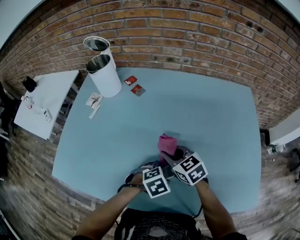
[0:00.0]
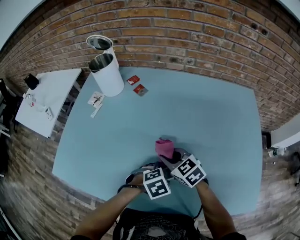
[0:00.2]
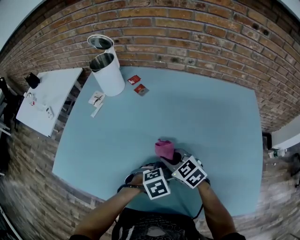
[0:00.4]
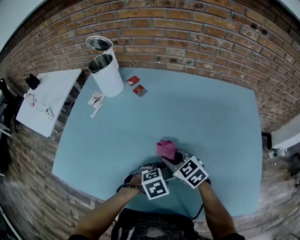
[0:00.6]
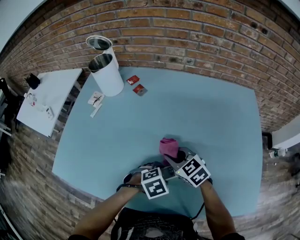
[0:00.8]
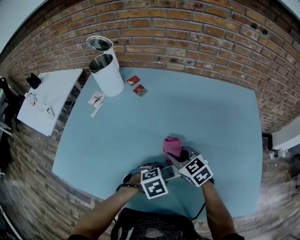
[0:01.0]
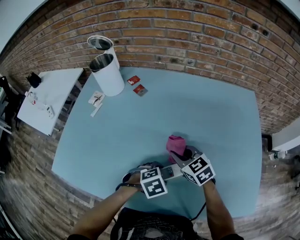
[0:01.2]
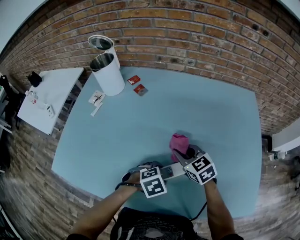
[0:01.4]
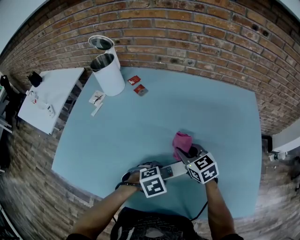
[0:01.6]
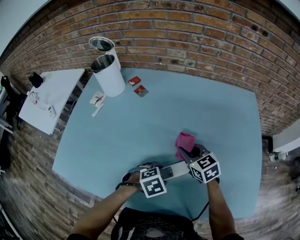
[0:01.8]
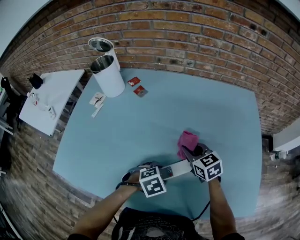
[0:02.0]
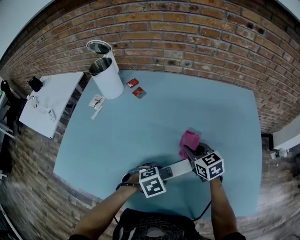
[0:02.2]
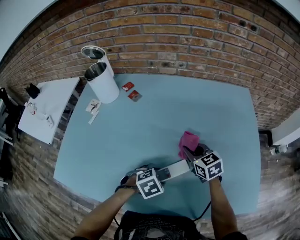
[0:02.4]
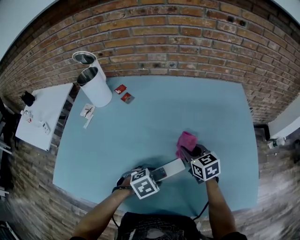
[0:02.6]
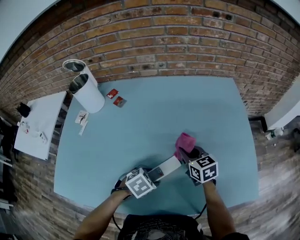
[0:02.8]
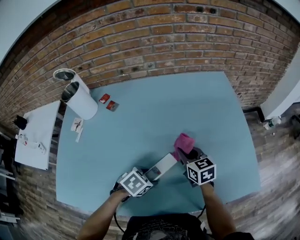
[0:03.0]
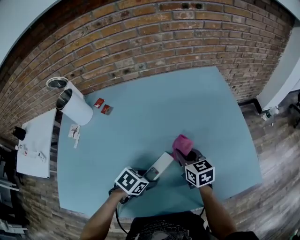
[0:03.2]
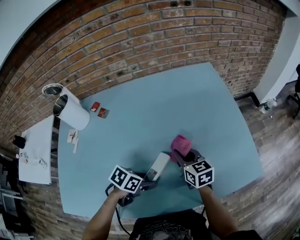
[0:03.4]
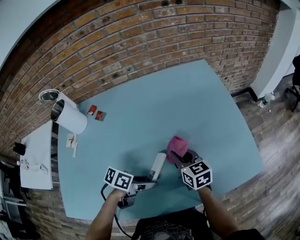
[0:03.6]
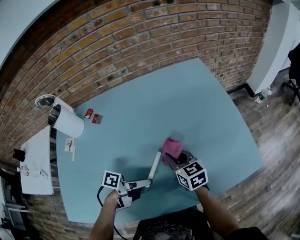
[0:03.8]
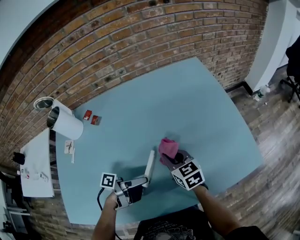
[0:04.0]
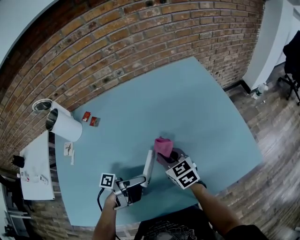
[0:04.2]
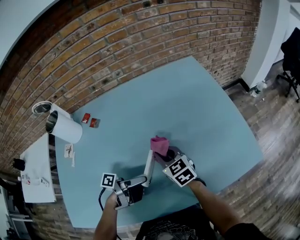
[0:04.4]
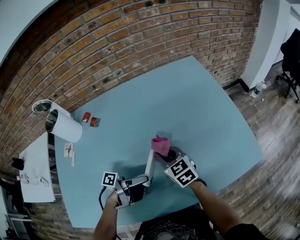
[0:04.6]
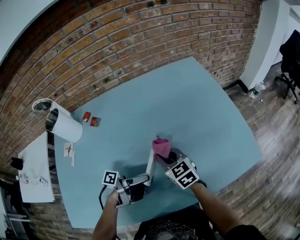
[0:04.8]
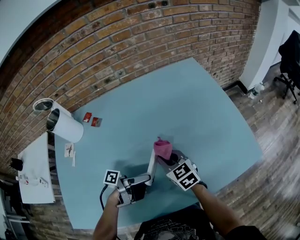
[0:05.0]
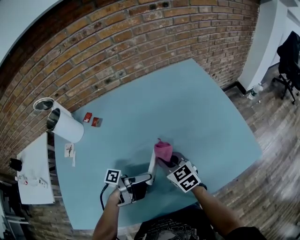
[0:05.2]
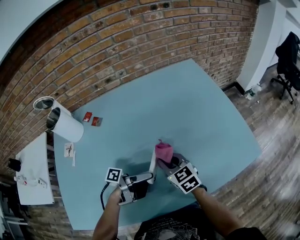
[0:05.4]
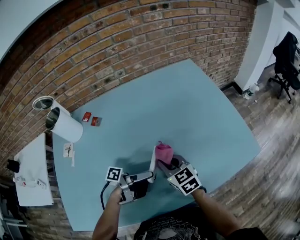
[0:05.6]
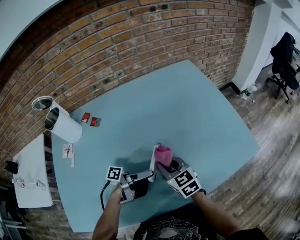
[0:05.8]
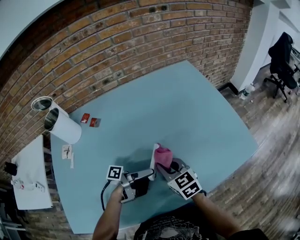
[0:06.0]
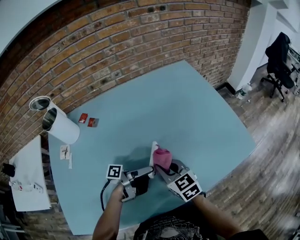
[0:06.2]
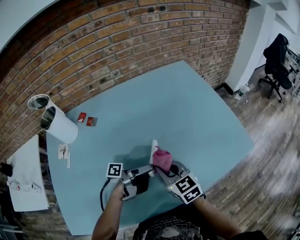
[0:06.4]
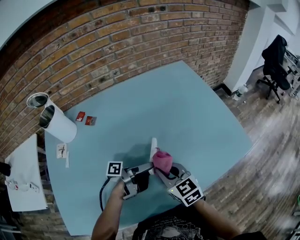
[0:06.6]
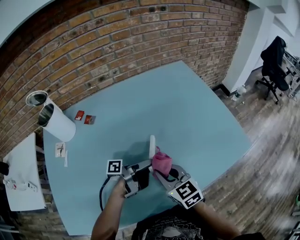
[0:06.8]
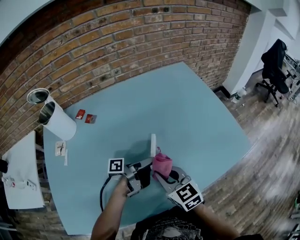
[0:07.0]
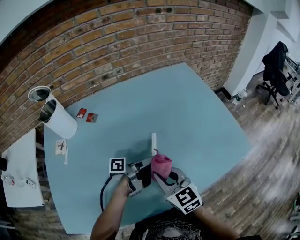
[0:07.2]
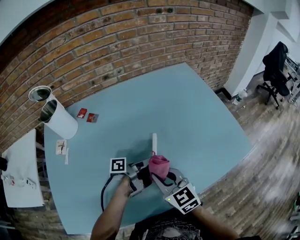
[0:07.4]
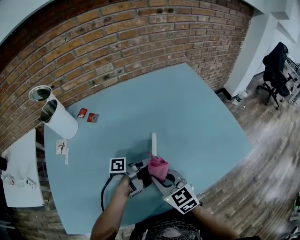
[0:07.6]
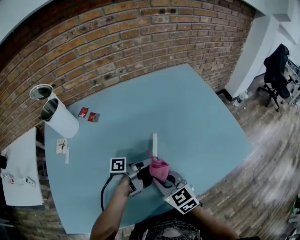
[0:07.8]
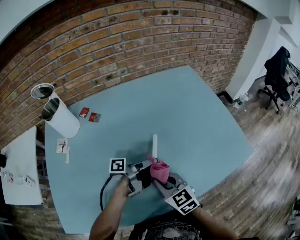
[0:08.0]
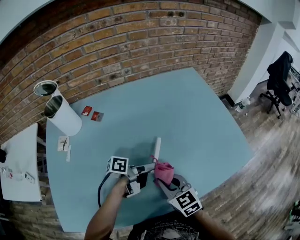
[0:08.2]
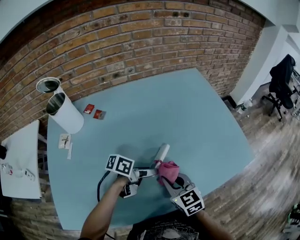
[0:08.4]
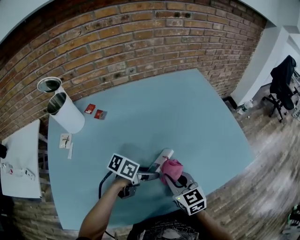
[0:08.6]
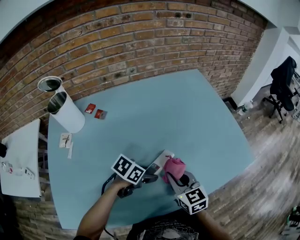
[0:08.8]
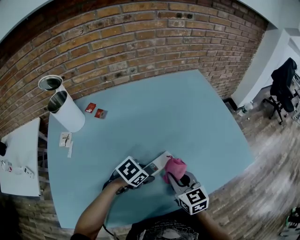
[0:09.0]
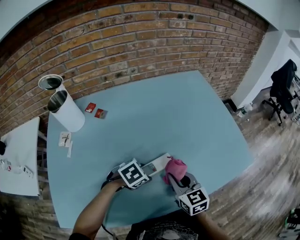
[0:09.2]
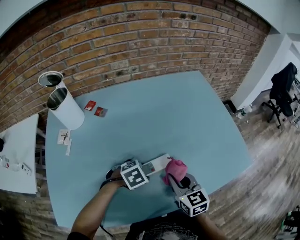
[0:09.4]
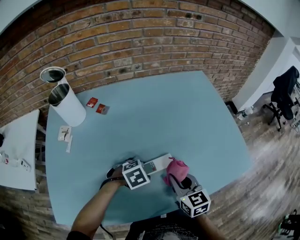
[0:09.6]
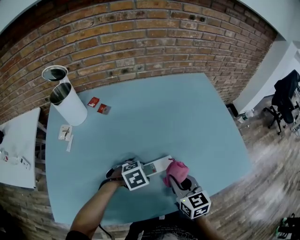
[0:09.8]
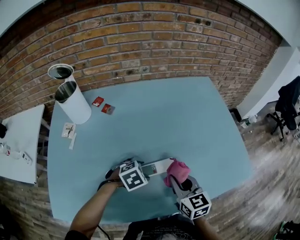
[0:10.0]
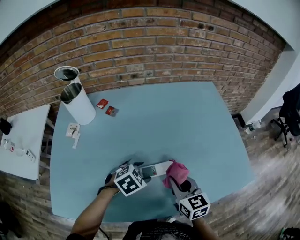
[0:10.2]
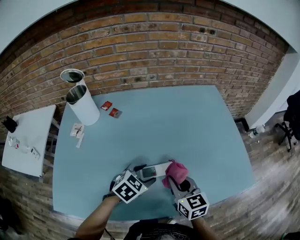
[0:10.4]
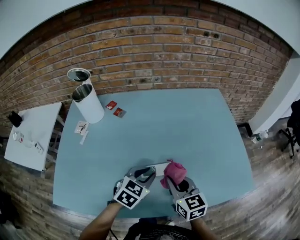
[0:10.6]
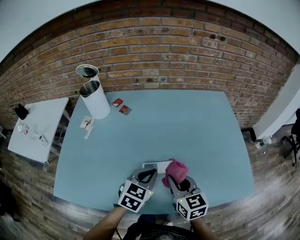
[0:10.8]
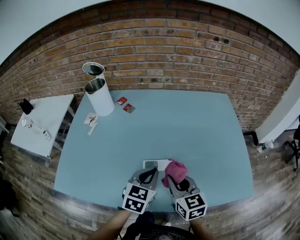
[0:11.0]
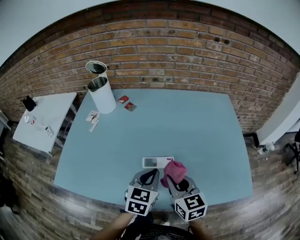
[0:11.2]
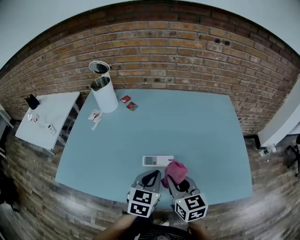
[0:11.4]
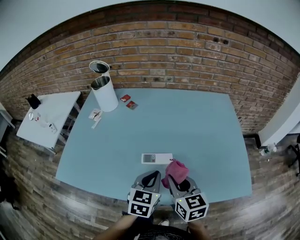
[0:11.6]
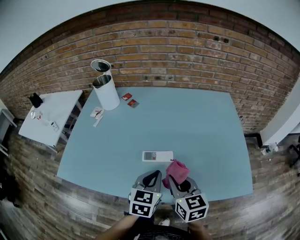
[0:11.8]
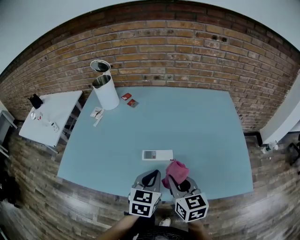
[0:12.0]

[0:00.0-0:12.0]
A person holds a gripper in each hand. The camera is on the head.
0:00.0 to 0:01.6: The right gripper ends up about 5 cm from where it was.
0:01.6 to 0:03.0: The right gripper travels to the right by approximately 10 cm, and swivels about 30 degrees.
0:03.0 to 0:04.4: The right gripper moves some 5 cm. Meanwhile the left gripper travels upward by roughly 5 cm, and tips its fingers upward by roughly 70 degrees.
0:04.4 to 0:06.0: The right gripper heads backward, covering some 10 cm.
0:06.0 to 0:07.6: The right gripper shifts some 5 cm backward.
0:07.6 to 0:09.0: The left gripper goes about 5 cm backward and downward, and angles its fingers downward, by roughly 60 degrees. The right gripper ends up approximately 5 cm from where it was.
0:09.0 to 0:10.4: The left gripper travels upward by about 5 cm, and turns by approximately 30 degrees.
0:10.4 to 0:12.0: The right gripper moves some 10 cm. Meanwhile the left gripper changes place by some 10 cm, turns by roughly 50 degrees, and closes.

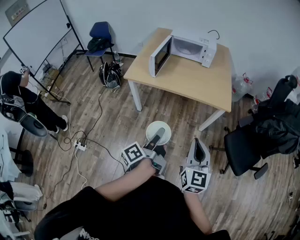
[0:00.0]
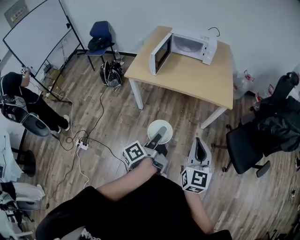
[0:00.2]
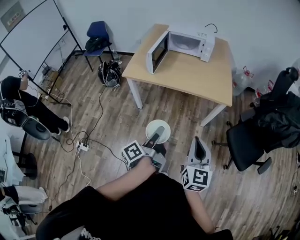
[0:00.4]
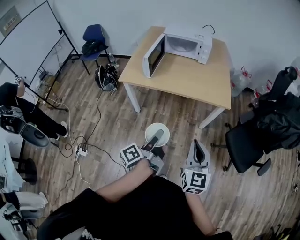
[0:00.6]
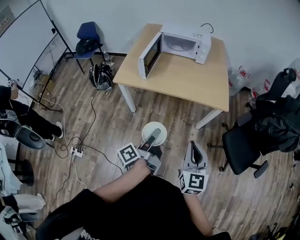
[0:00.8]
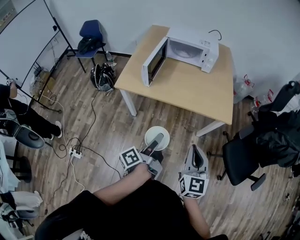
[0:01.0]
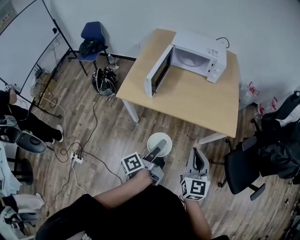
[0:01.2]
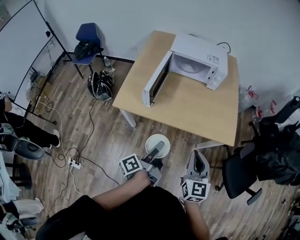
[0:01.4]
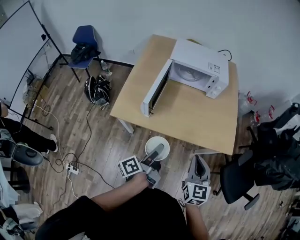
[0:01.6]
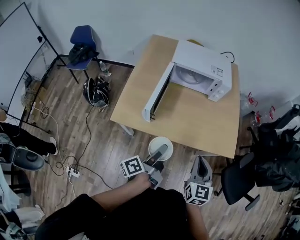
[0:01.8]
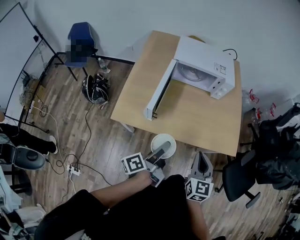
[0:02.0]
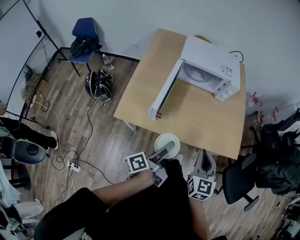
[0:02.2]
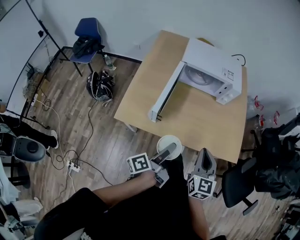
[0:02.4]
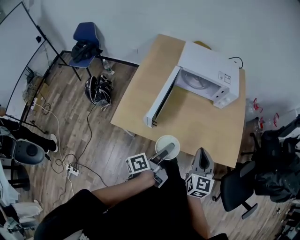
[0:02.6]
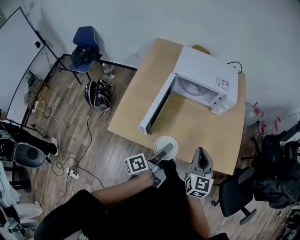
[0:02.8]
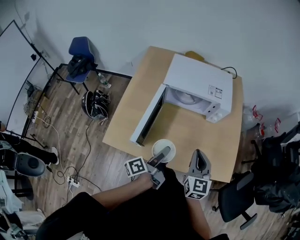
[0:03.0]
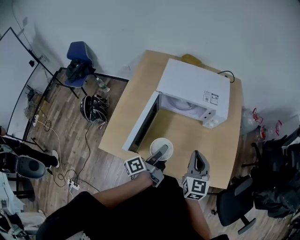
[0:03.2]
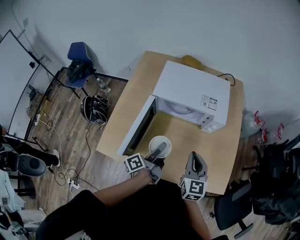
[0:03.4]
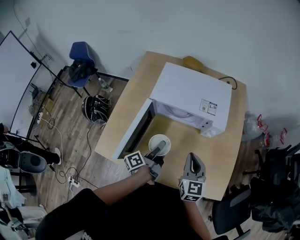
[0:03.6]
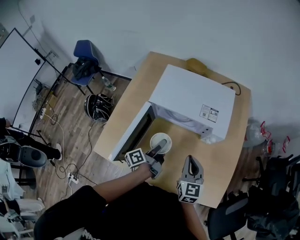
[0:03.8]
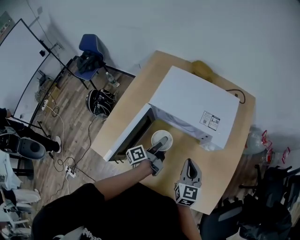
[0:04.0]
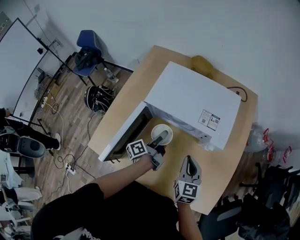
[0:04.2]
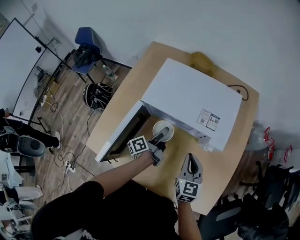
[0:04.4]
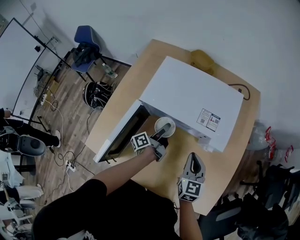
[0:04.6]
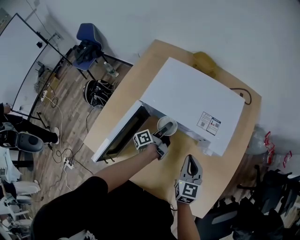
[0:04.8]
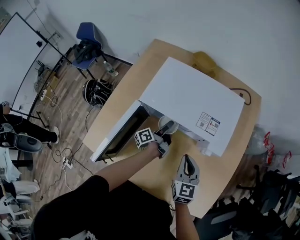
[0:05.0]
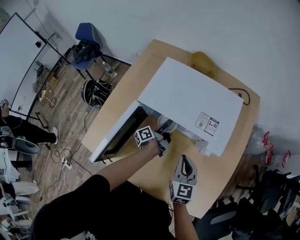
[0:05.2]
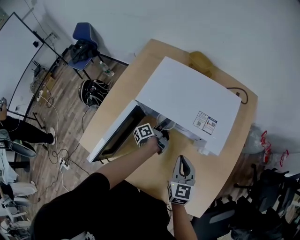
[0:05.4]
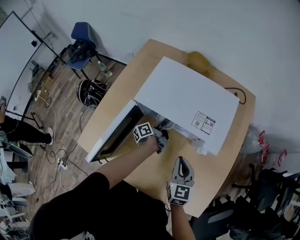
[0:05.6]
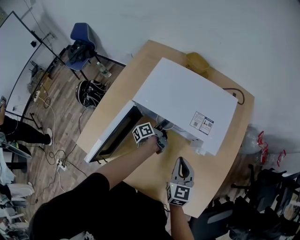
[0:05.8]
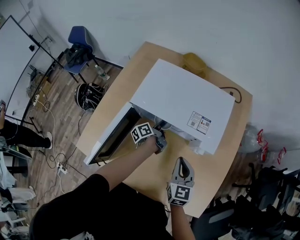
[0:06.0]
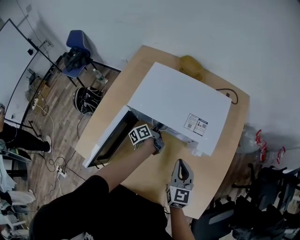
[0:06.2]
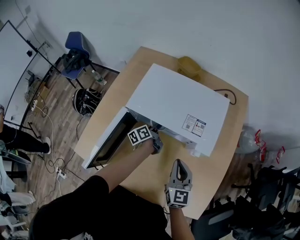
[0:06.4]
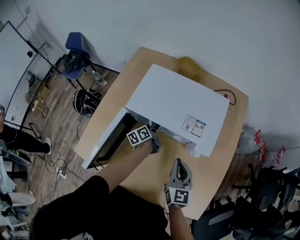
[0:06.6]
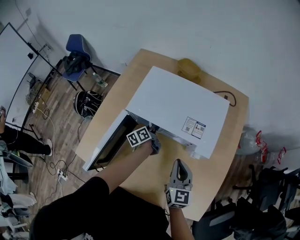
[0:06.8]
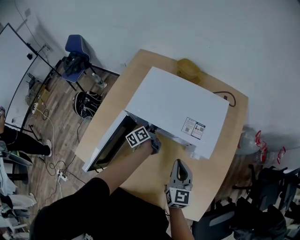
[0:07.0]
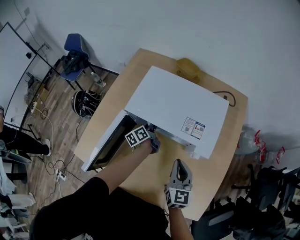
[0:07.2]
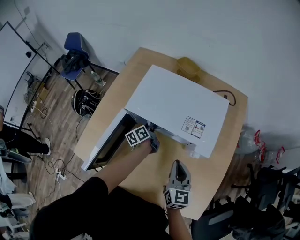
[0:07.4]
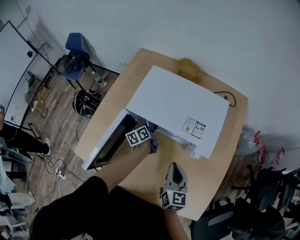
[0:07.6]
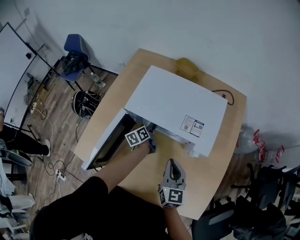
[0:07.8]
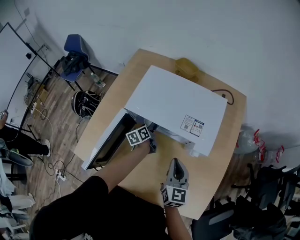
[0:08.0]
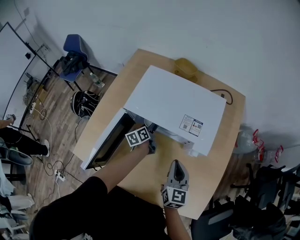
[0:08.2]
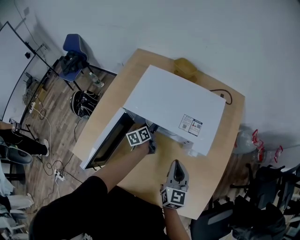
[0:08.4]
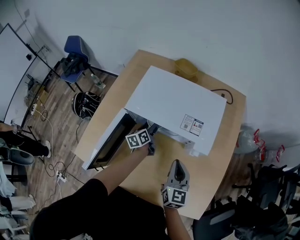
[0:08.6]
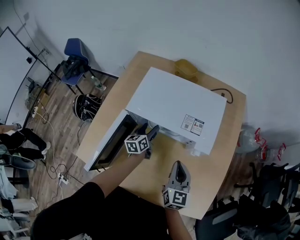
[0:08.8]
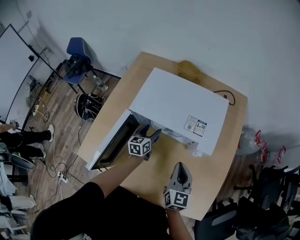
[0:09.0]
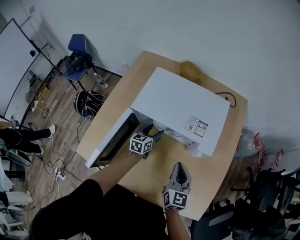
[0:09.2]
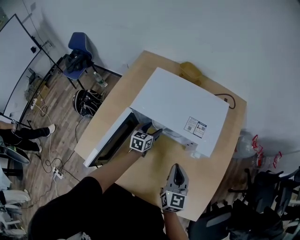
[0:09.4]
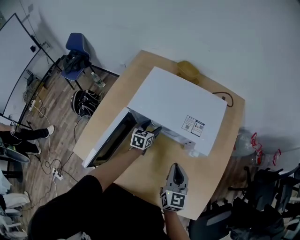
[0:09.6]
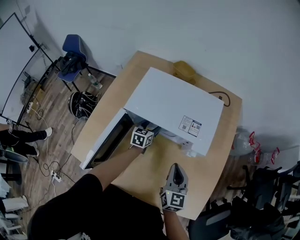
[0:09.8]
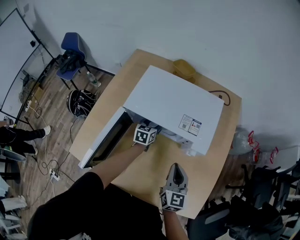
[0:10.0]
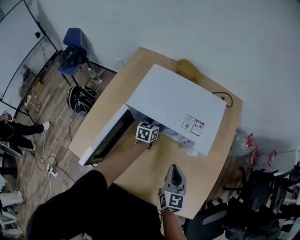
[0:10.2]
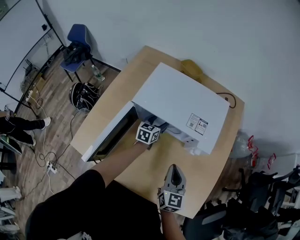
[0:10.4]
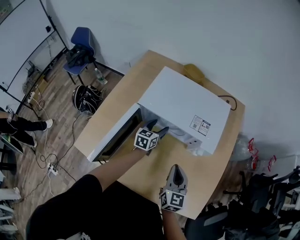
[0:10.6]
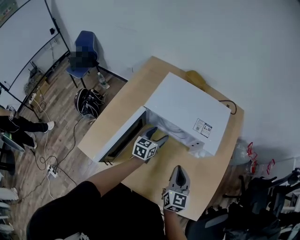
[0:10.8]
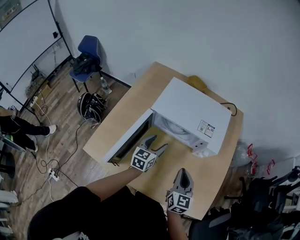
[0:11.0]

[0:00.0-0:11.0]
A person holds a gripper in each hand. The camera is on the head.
0:00.0 to 0:01.6: The two grippers go roughly 30 cm forward.
0:01.6 to 0:03.2: Both grippers travel together forward, approximately 25 cm.
0:03.2 to 0:04.8: The left gripper shifts roughly 30 cm forward and downward. The right gripper heads forward and downward, covering approximately 20 cm.
0:04.8 to 0:06.2: The left gripper changes place by approximately 5 cm.
0:06.2 to 0:07.8: The left gripper swivels some 20 degrees.
0:07.8 to 0:09.4: The left gripper rotates about 40 degrees.
0:09.4 to 0:11.0: The left gripper moves backward and upward, some 15 cm. Meanwhile the right gripper shifts approximately 5 cm backward.

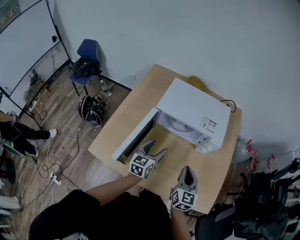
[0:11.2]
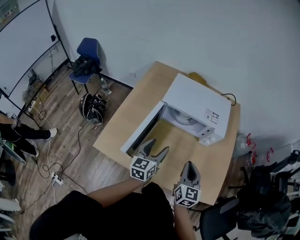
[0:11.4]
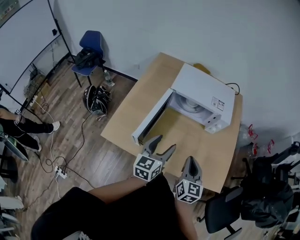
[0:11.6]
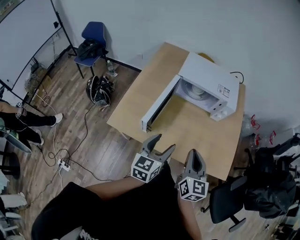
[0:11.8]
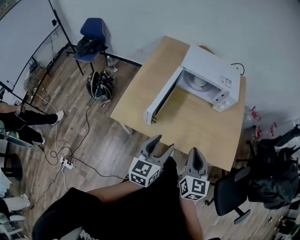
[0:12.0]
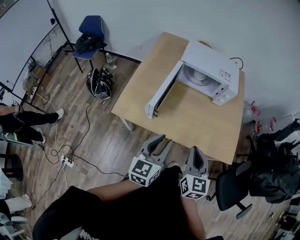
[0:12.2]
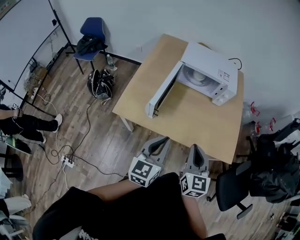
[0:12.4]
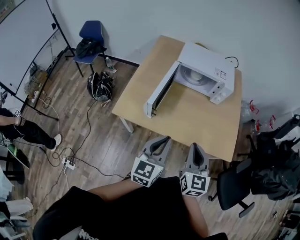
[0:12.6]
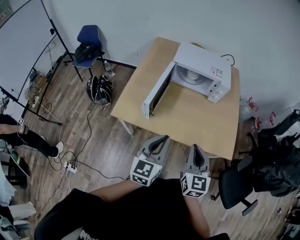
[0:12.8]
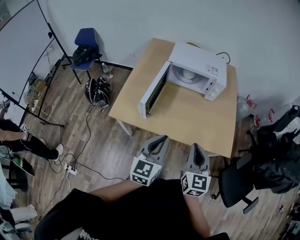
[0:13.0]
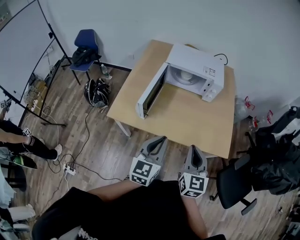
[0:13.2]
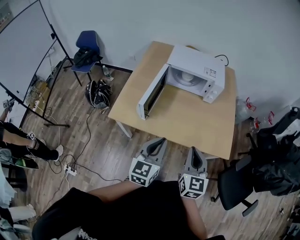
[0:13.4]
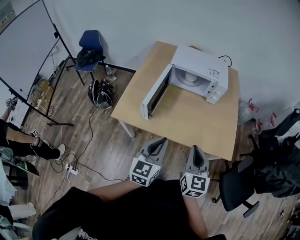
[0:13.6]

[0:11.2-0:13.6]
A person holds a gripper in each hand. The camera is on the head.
0:11.2 to 0:12.4: Both grippers move backward, about 30 cm. The left gripper closes its fingers.
0:12.4 to 0:13.6: The right gripper is displaced to the right by some 5 cm.
